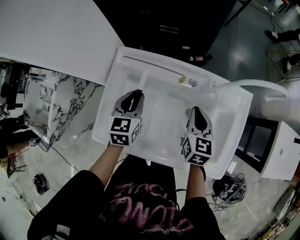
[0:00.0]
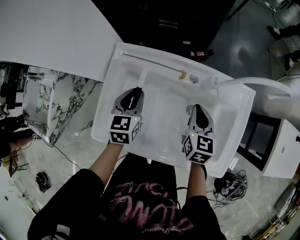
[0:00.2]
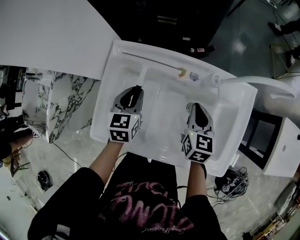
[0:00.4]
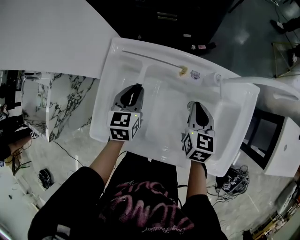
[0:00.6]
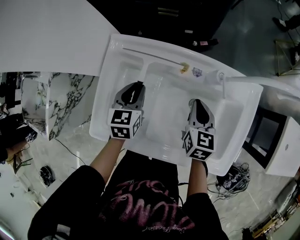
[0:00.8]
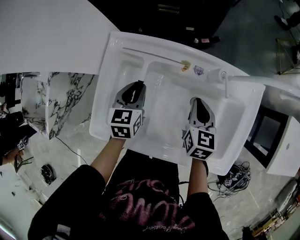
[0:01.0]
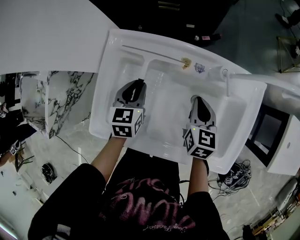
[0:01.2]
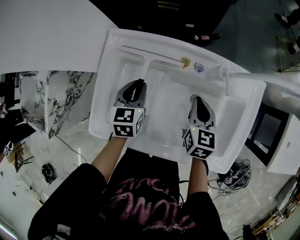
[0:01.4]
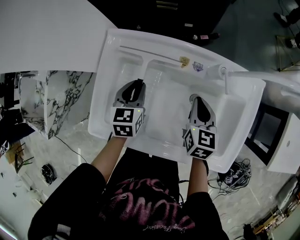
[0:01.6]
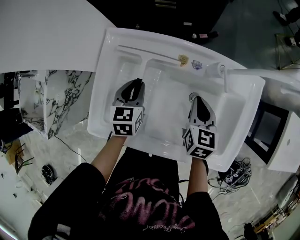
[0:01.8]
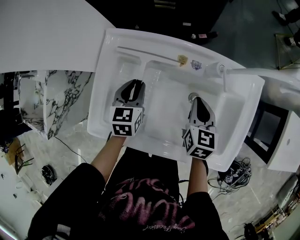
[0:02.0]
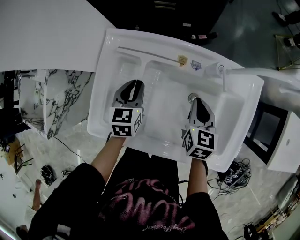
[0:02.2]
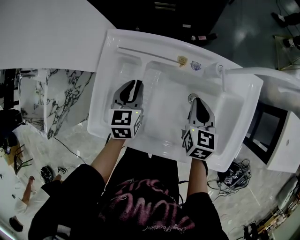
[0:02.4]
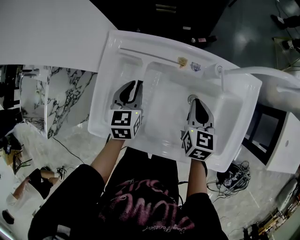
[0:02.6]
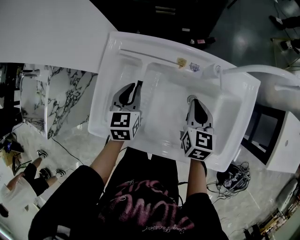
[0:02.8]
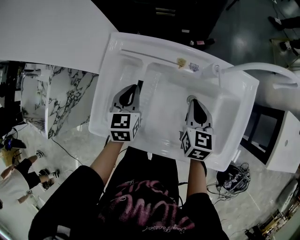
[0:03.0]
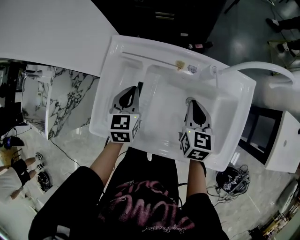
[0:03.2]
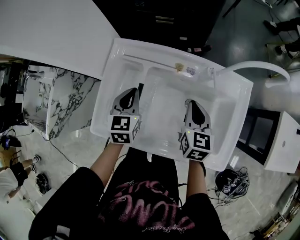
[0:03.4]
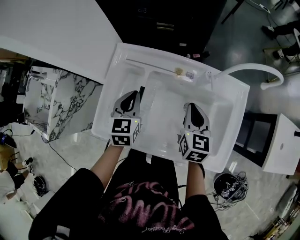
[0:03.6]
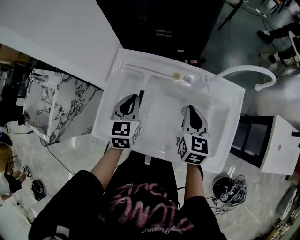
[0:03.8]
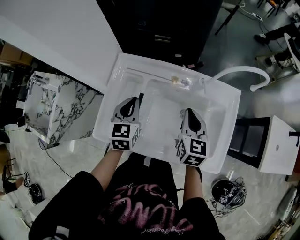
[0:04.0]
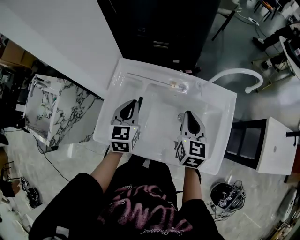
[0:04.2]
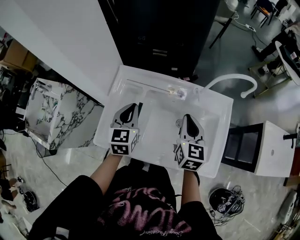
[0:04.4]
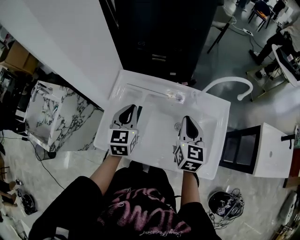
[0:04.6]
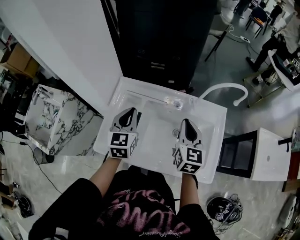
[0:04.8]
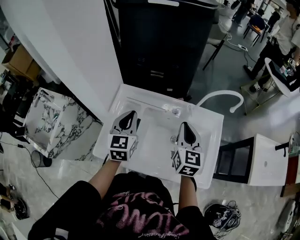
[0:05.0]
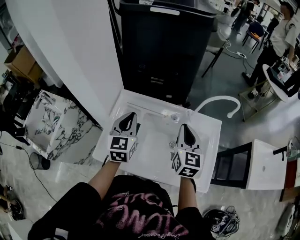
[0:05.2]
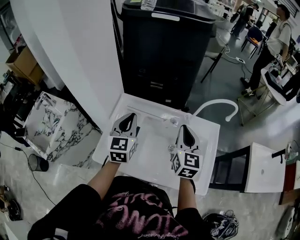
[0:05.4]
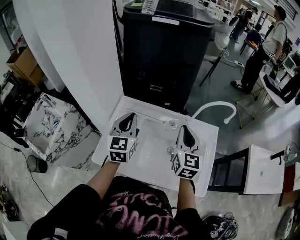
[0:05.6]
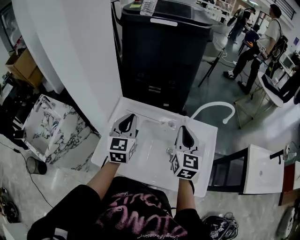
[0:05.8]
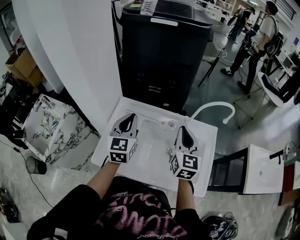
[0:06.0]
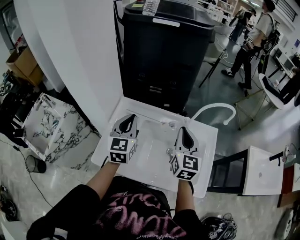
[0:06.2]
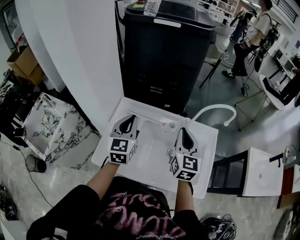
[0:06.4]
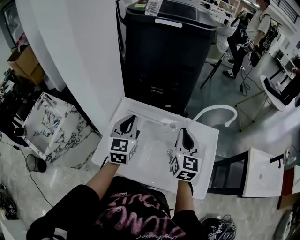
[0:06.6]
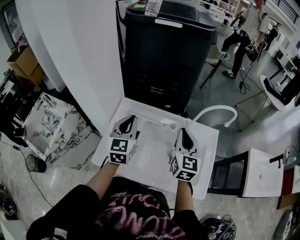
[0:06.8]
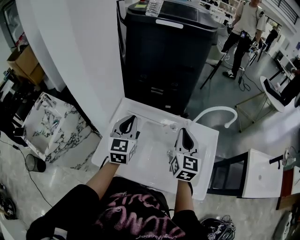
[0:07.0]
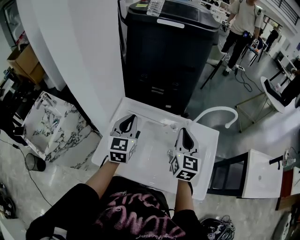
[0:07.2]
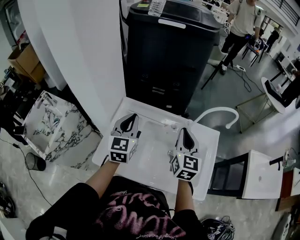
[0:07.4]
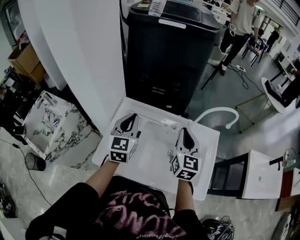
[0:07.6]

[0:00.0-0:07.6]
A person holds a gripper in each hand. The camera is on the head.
0:00.0 to 0:01.6: Both grippers travel together downward, approximately 5 cm.
0:01.6 to 0:03.0: The grippers stay close to where they were, moving slightly.
0:03.0 to 0:04.6: Both grippers move upward, approximately 15 cm.
0:04.6 to 0:06.0: Both grippers travel together upward, roughly 10 cm.
0:06.0 to 0:07.6: The grippers make only small movements.

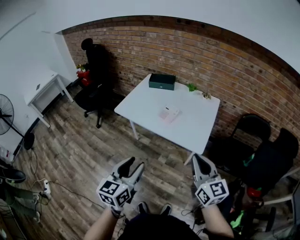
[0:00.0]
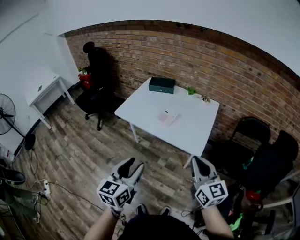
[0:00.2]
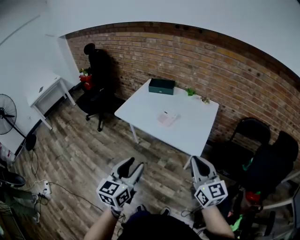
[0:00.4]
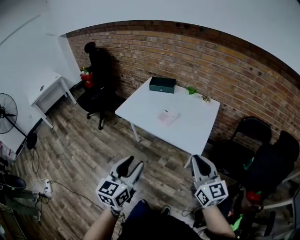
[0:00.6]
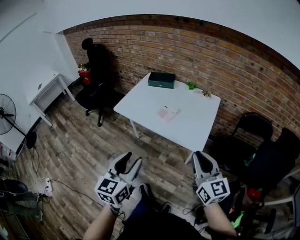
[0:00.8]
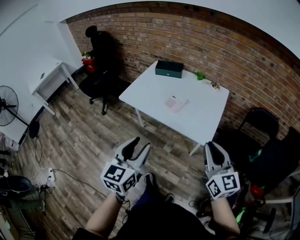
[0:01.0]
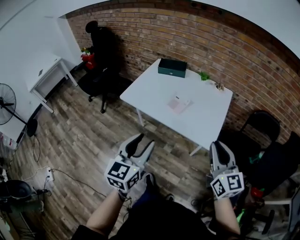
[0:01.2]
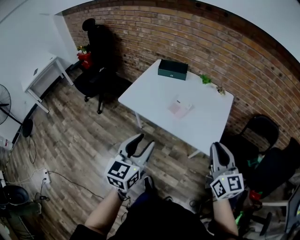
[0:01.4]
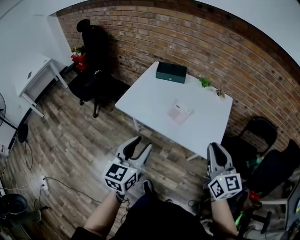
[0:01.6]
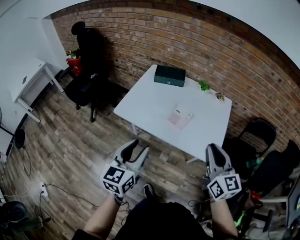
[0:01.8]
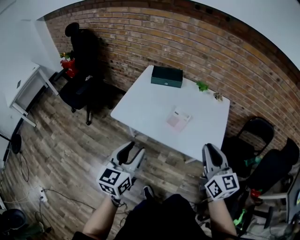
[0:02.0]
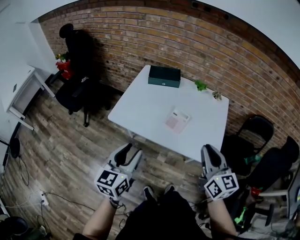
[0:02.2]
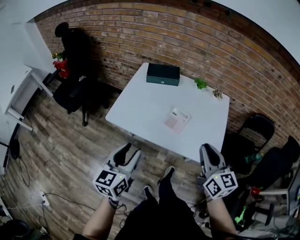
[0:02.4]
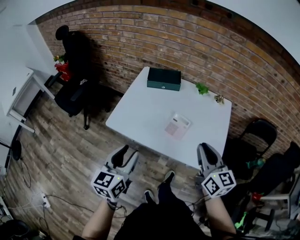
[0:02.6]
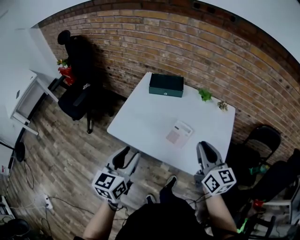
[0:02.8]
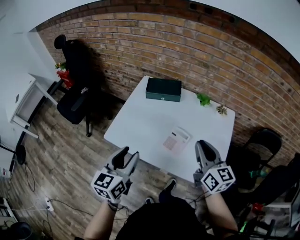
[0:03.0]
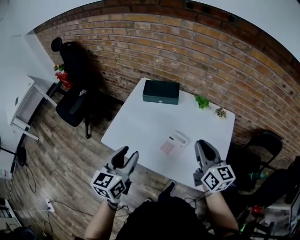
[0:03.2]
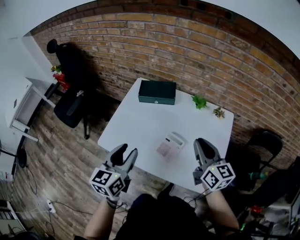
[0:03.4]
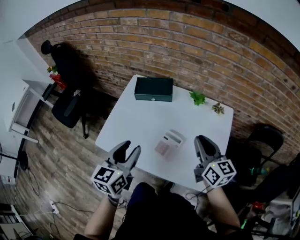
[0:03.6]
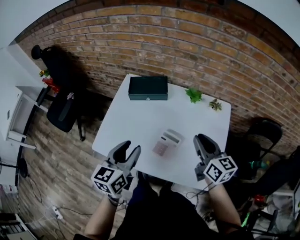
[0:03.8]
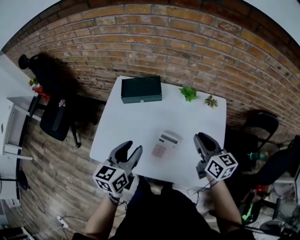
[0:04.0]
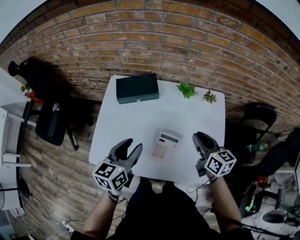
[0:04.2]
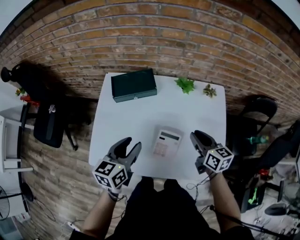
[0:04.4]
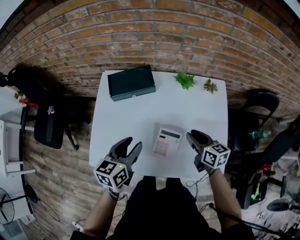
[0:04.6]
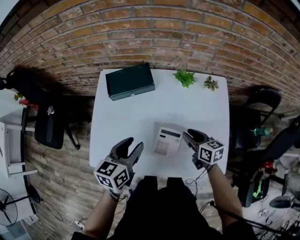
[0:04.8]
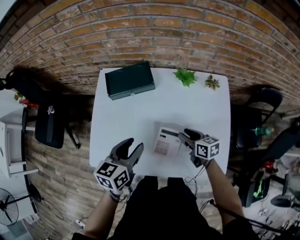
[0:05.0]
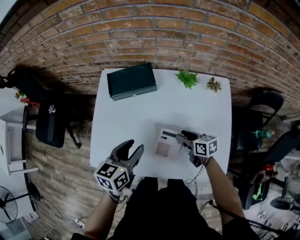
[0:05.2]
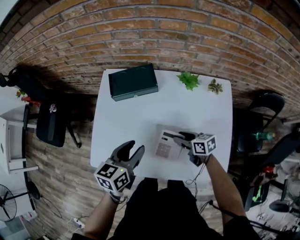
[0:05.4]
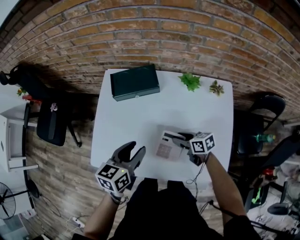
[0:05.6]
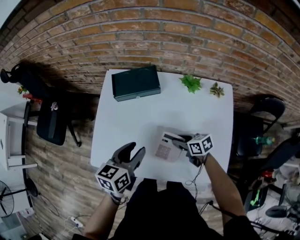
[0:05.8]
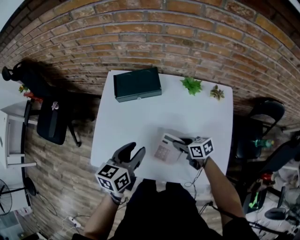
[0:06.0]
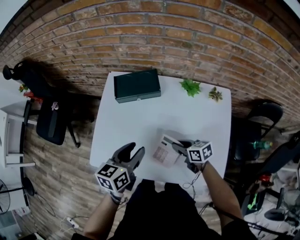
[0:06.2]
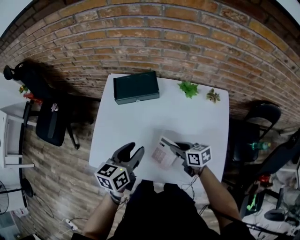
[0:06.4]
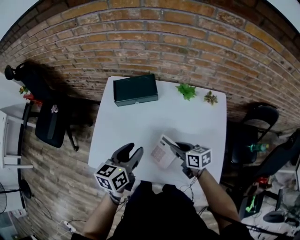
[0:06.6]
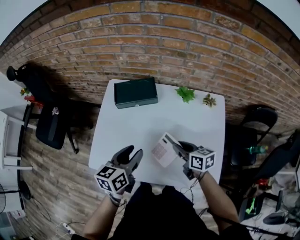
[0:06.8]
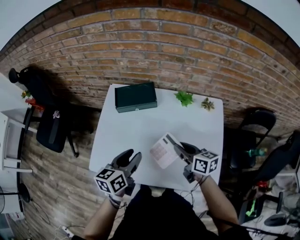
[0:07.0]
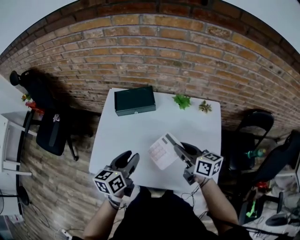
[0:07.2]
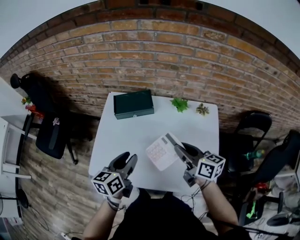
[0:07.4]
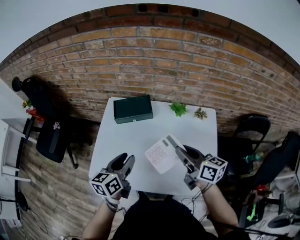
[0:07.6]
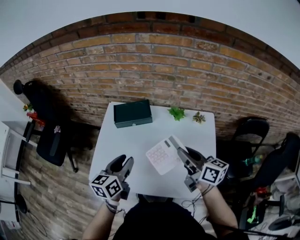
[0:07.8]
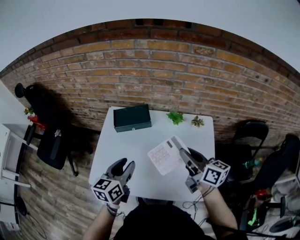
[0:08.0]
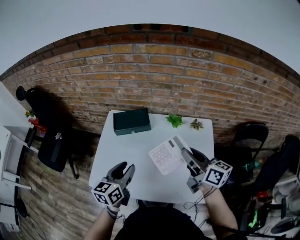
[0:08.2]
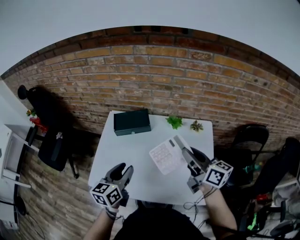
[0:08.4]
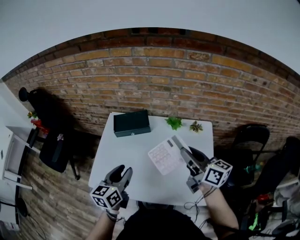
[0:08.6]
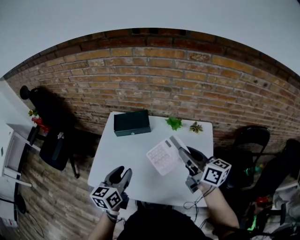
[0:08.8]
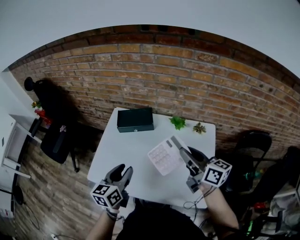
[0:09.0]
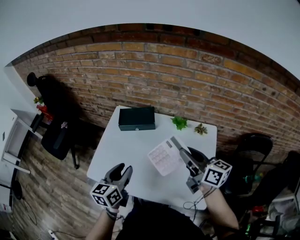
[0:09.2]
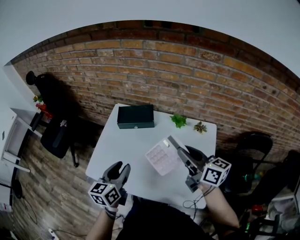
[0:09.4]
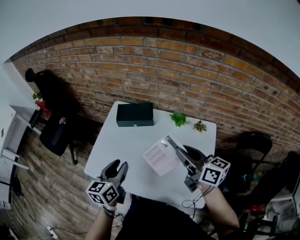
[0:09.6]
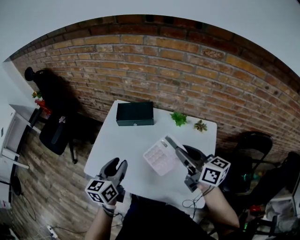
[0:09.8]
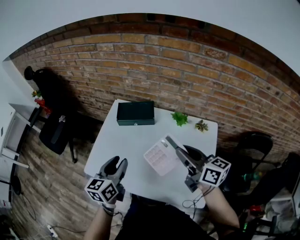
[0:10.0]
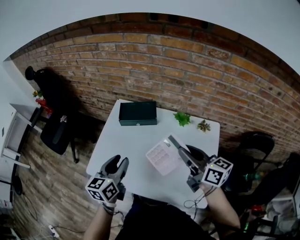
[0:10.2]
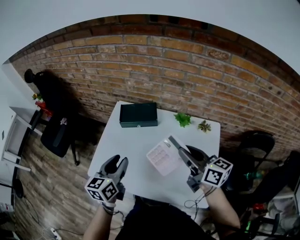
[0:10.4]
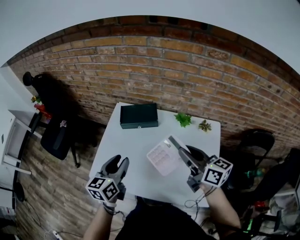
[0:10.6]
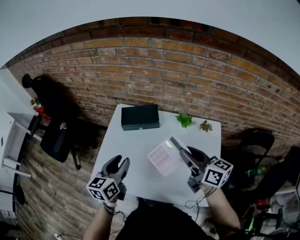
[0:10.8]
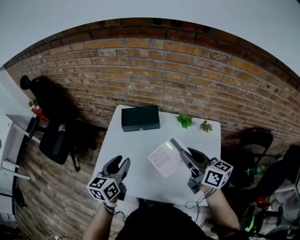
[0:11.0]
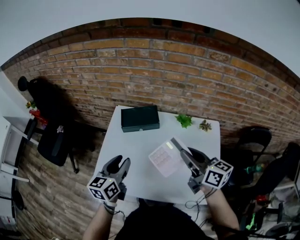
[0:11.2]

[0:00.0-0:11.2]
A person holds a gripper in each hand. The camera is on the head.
0:00.0 to 0:01.6: The left gripper shifts some 20 cm forward and to the left. Meanwhile the right gripper shifts approximately 15 cm forward.
0:01.6 to 0:03.2: The two grippers go some 25 cm forward.
0:03.2 to 0:04.8: The right gripper shifts roughly 25 cm downward and forward, and turns by about 30 degrees, while the left gripper shifts roughly 25 cm forward and downward, and changes its angle by approximately 30 degrees.
0:04.8 to 0:06.4: The right gripper moves to the left, roughly 5 cm.
0:06.4 to 0:08.0: The left gripper is displaced upward by roughly 10 cm; the right gripper goes approximately 25 cm upward, and swivels about 40 degrees.
0:08.0 to 0:09.6: The grippers move only a little.
0:09.6 to 0:11.2: The left gripper heads forward, covering about 5 cm; the right gripper moves roughly 5 cm.

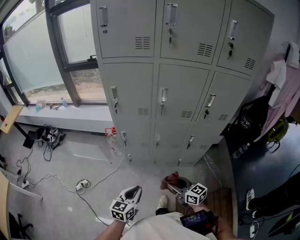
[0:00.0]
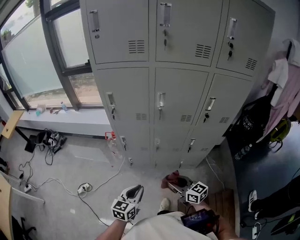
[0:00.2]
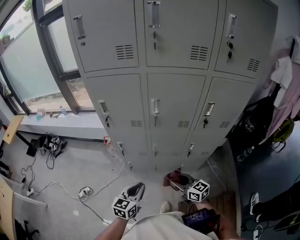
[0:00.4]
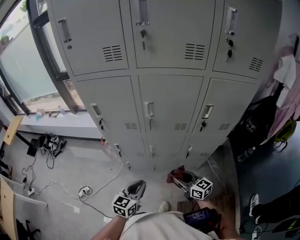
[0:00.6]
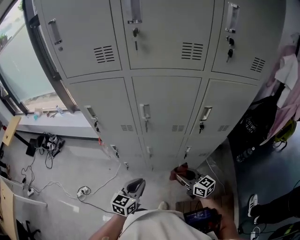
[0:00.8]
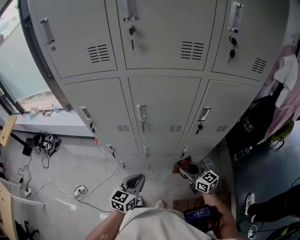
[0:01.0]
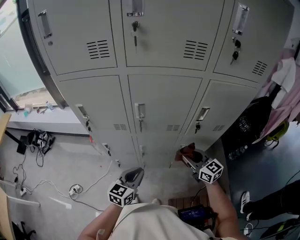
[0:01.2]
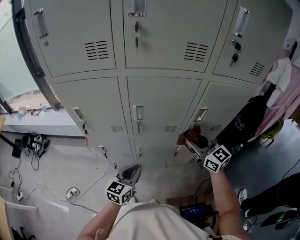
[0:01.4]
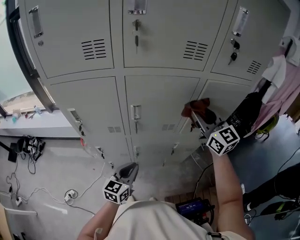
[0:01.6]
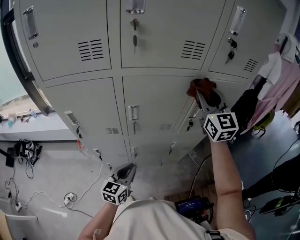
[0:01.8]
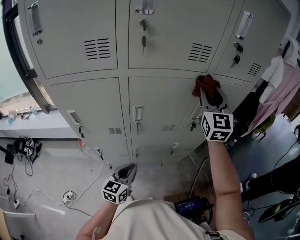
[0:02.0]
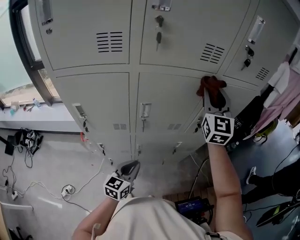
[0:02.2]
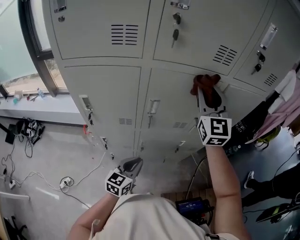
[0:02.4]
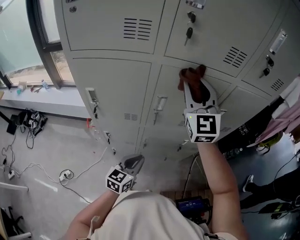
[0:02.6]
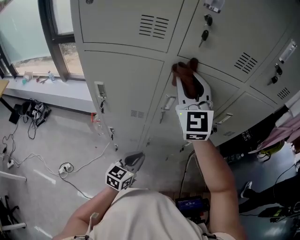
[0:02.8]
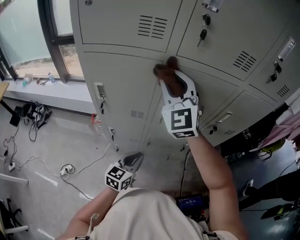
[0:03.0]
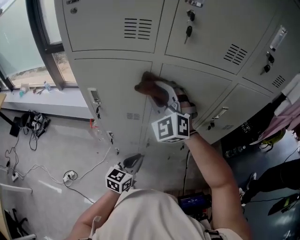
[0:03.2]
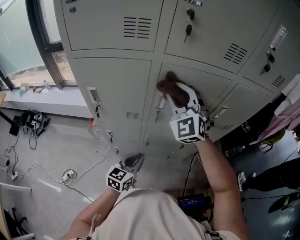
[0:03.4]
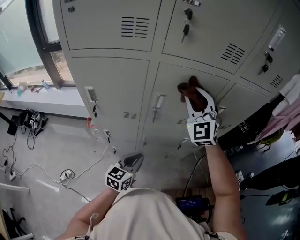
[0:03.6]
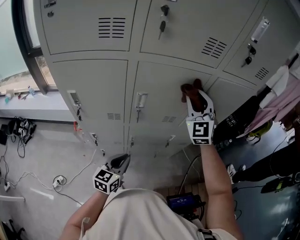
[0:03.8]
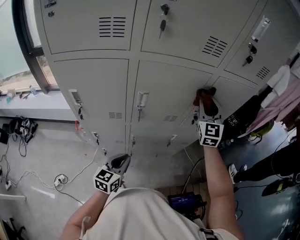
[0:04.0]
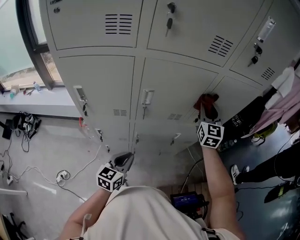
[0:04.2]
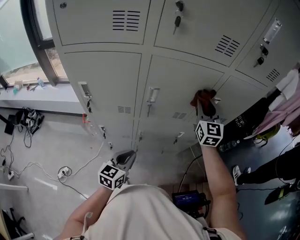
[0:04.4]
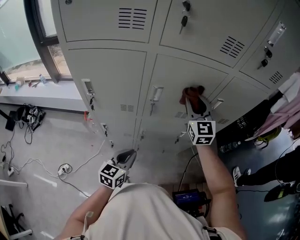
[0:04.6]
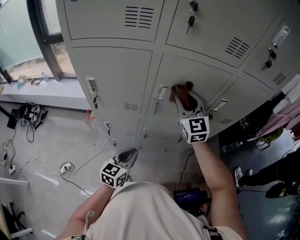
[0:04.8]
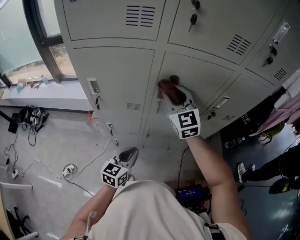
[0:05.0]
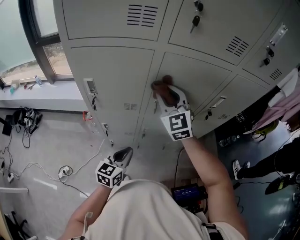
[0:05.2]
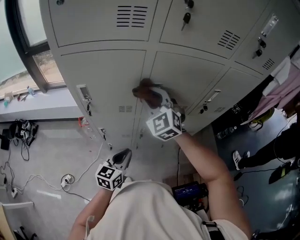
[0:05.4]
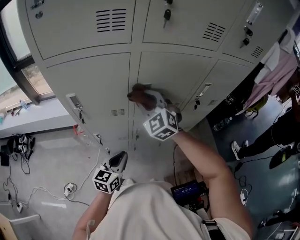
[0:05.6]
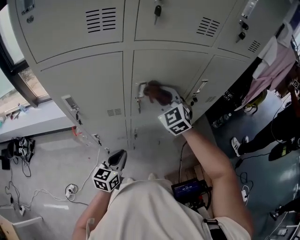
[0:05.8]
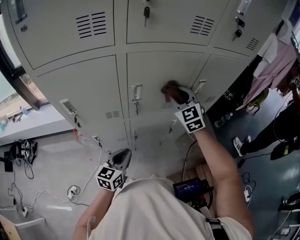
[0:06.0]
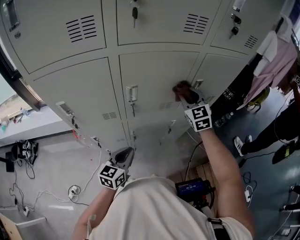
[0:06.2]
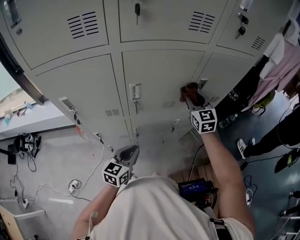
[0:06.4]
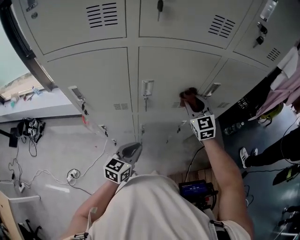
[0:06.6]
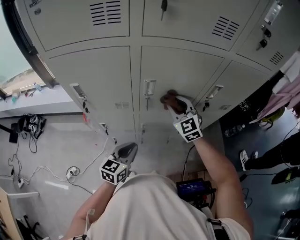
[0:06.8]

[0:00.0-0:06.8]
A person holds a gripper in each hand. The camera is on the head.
0:00.0 to 0:01.4: The right gripper moves forward, to the right and upward, some 40 cm, and rotates roughly 30 degrees, while the left gripper heads forward and to the right, covering approximately 25 cm.
0:01.4 to 0:02.8: The right gripper heads to the left and upward, covering roughly 30 cm, and rotates roughly 40 degrees. The left gripper is displaced to the left by some 5 cm.
0:02.8 to 0:04.0: The right gripper goes roughly 25 cm to the right, and rotates approximately 20 degrees.
0:04.0 to 0:05.4: The left gripper shifts approximately 5 cm to the left, while the right gripper travels to the left by about 30 cm, and rotates approximately 30 degrees.
0:05.4 to 0:06.8: The right gripper goes approximately 15 cm to the right and downward.
